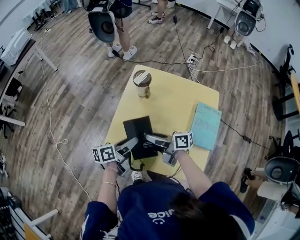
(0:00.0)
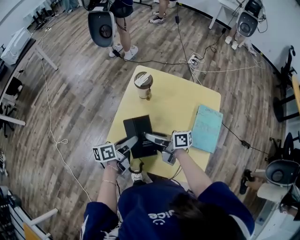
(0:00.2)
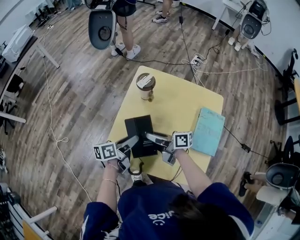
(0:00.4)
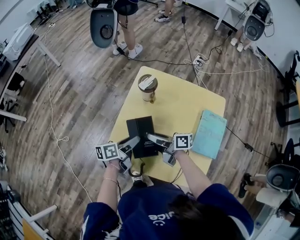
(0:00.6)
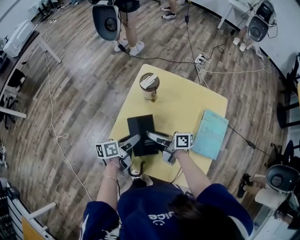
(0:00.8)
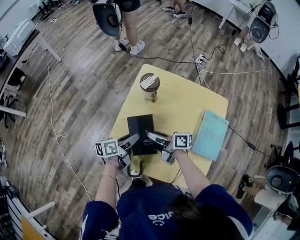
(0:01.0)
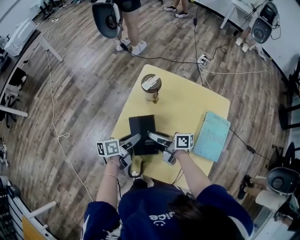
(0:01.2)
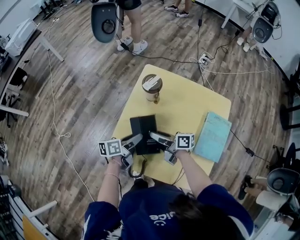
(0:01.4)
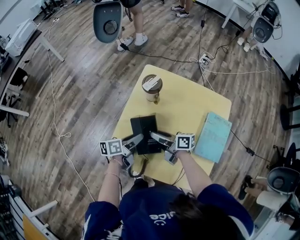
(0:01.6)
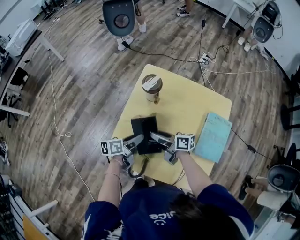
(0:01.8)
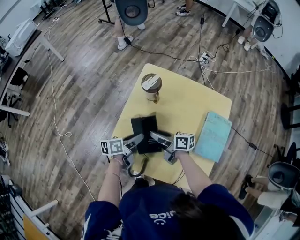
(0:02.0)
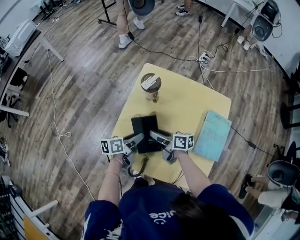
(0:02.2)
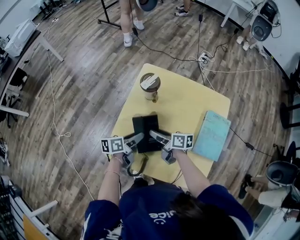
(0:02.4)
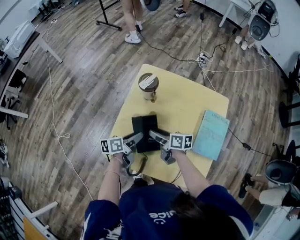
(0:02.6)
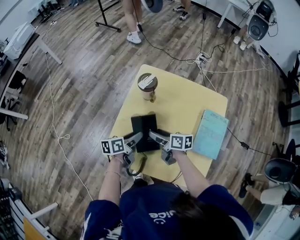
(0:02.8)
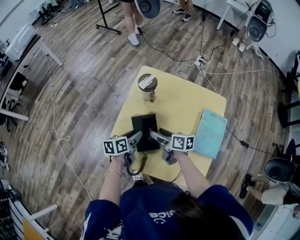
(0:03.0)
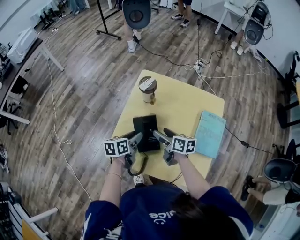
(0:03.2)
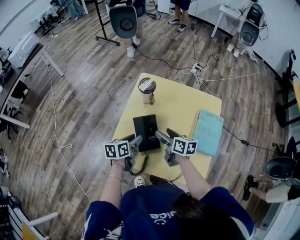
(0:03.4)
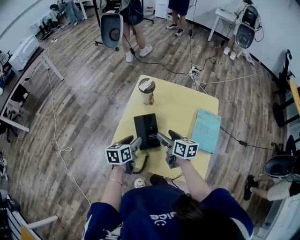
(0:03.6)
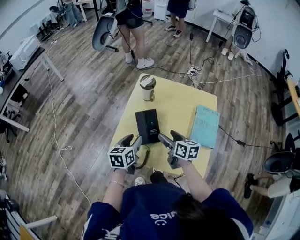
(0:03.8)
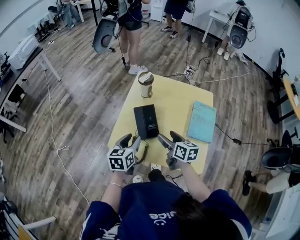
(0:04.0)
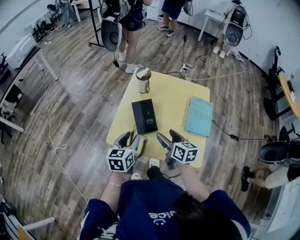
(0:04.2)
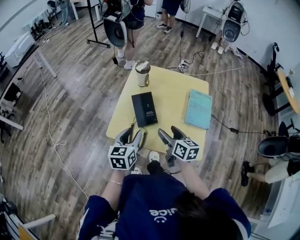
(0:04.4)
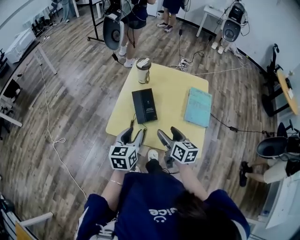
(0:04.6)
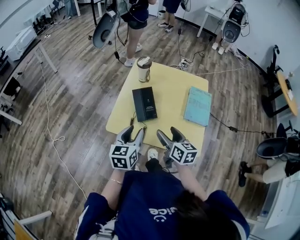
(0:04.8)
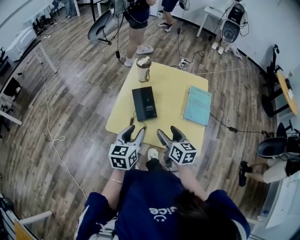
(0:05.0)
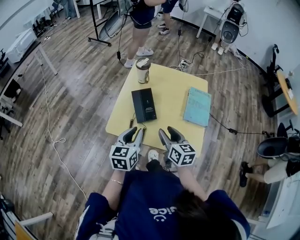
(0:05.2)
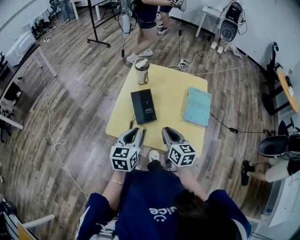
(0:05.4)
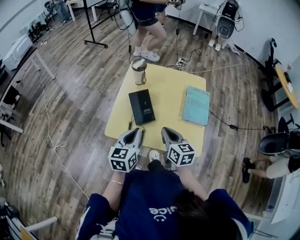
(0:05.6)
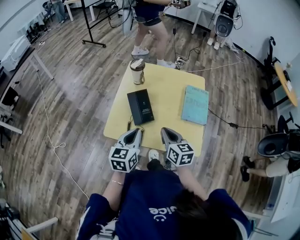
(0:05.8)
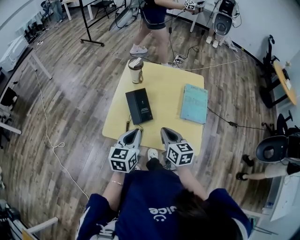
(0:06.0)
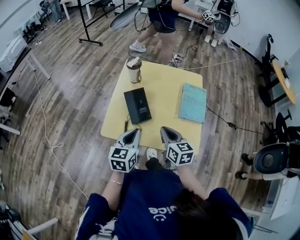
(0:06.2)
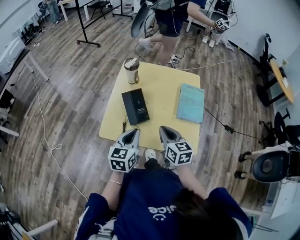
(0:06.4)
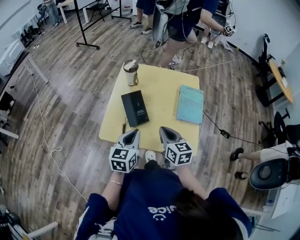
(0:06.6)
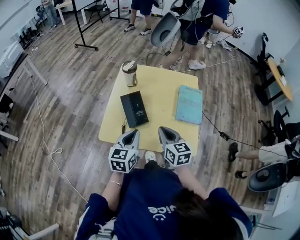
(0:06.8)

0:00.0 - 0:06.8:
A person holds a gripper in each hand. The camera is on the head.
0:00.0 - 0:01.4: Both grippers travel together forward and downward, roughly 10 cm.
0:01.4 - 0:02.8: The right gripper swivels roughly 20 degrees, and opens its fingers.
0:02.8 - 0:04.0: Both grippers move backward and upward, approximately 15 cm. The right gripper changes its angle by approximately 30 degrees; the left gripper changes its angle by some 40 degrees.
0:04.0 - 0:05.4: The two grippers go approximately 10 cm backward. The right gripper closes, while the left gripper closes its fingers.
0:05.4 - 0:06.8: The grippers move only a little.

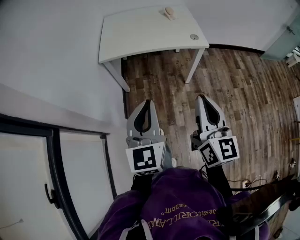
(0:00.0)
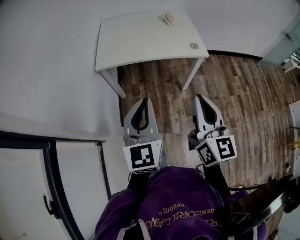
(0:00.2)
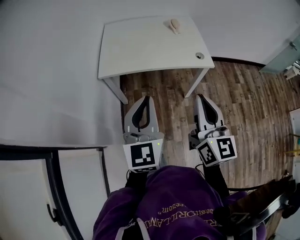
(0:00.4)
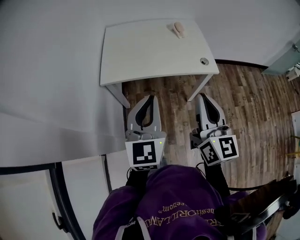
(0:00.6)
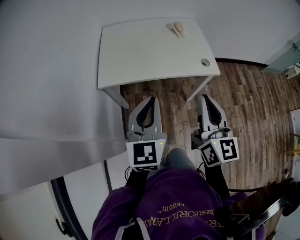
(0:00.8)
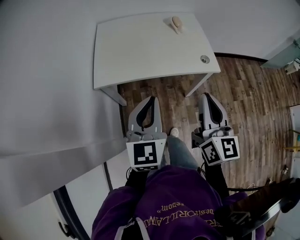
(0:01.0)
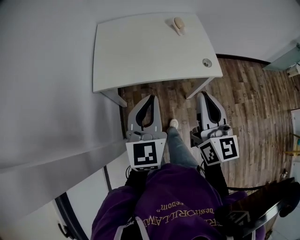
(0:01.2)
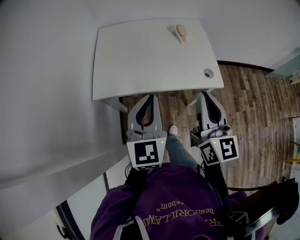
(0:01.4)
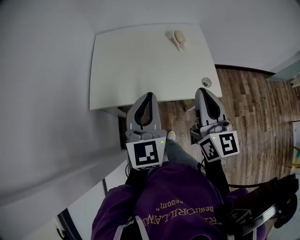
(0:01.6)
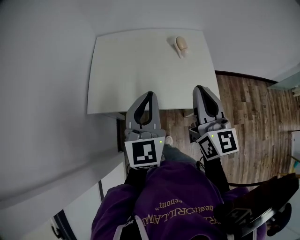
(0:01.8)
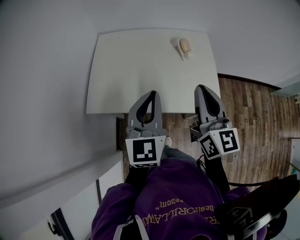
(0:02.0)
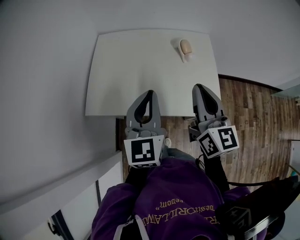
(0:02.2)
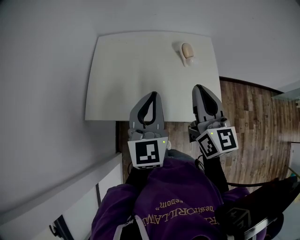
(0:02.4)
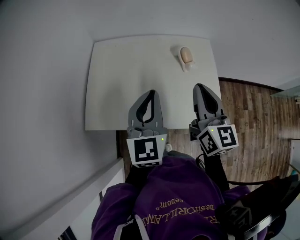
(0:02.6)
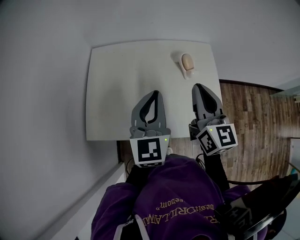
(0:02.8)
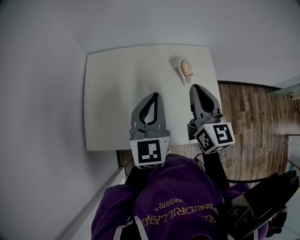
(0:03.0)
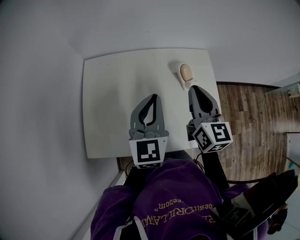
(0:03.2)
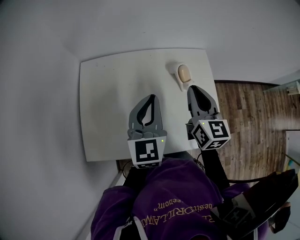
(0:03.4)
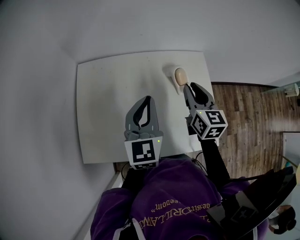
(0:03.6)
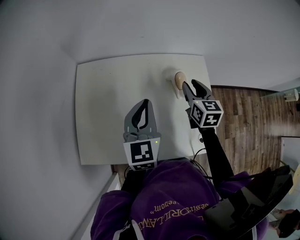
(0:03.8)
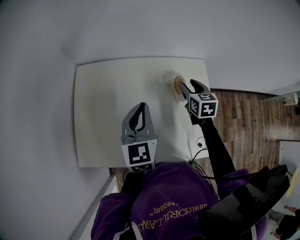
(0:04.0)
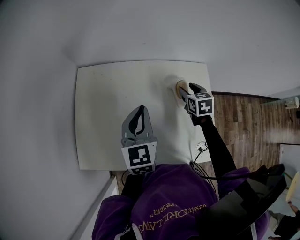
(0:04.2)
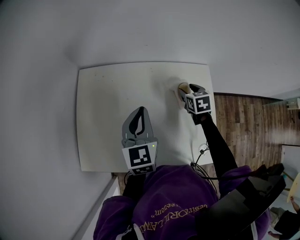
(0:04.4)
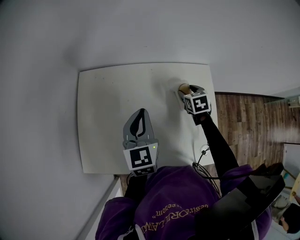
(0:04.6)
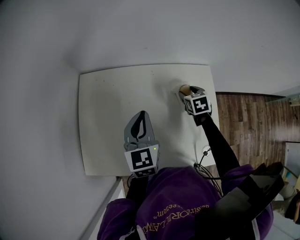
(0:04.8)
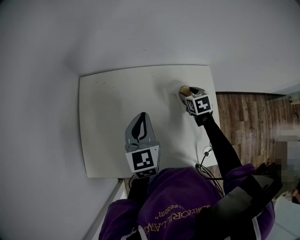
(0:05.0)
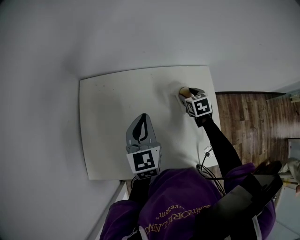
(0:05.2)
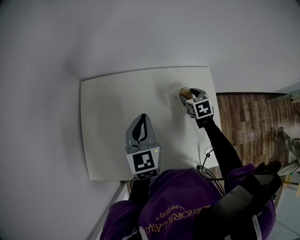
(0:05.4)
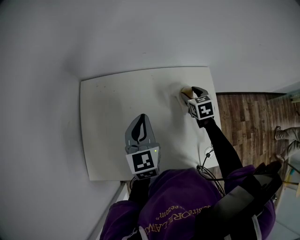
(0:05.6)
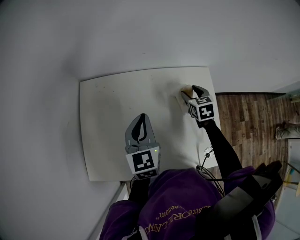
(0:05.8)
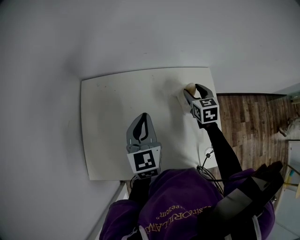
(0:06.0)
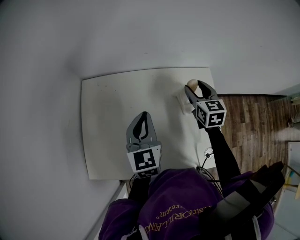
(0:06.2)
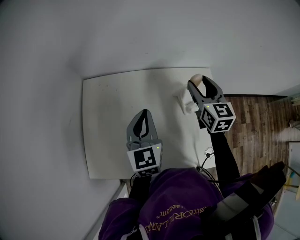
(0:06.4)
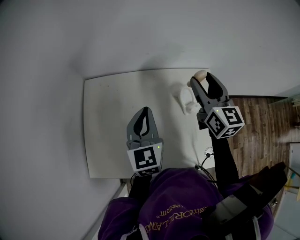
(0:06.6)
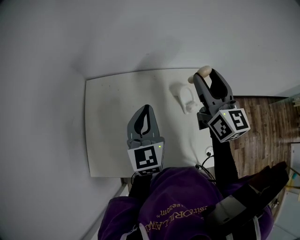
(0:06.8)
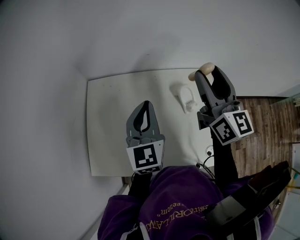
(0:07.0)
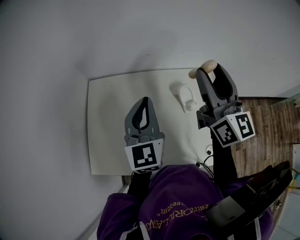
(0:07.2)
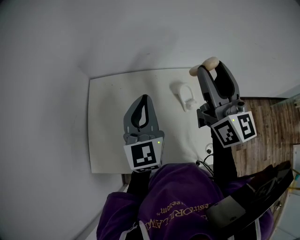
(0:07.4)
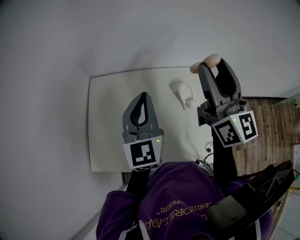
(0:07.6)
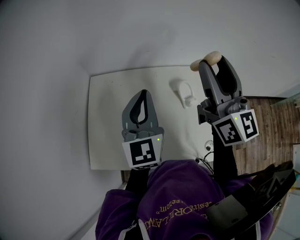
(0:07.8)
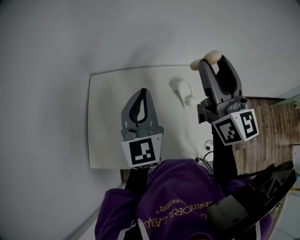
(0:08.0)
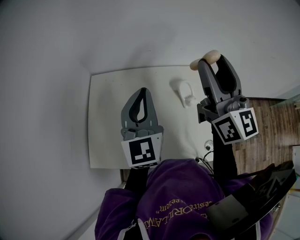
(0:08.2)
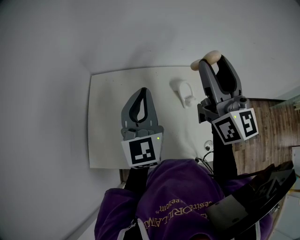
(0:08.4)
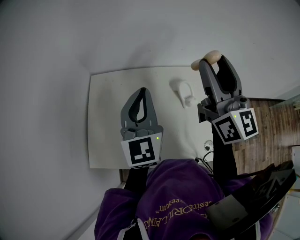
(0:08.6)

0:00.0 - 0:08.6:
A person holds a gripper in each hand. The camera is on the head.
0:00.0 - 0:01.4: Both grippers move forward, some 35 cm.
0:01.4 - 0:02.8: The two grippers go roughly 30 cm forward.
0:02.8 - 0:04.4: The right gripper travels downward and forward by approximately 35 cm, tips its fingers downward by some 50 degrees, and opens up, while the left gripper shifts approximately 15 cm forward and downward.
0:04.4 - 0:05.8: There are only small adjustments of the grippers.
0:05.8 - 0:07.2: The left gripper goes approximately 10 cm upward. The right gripper is displaced upward by some 35 cm, and tilts its fingers roughly 50 degrees upward.
0:07.2 - 0:08.6: The right gripper moves some 5 cm.

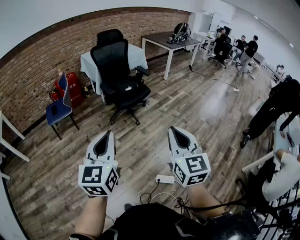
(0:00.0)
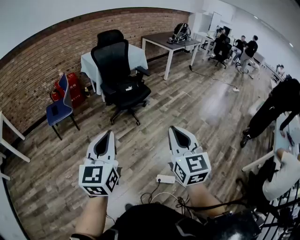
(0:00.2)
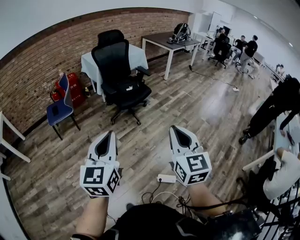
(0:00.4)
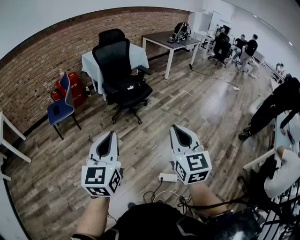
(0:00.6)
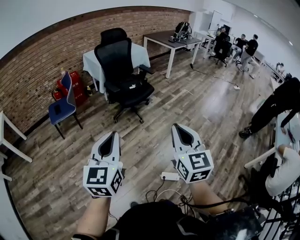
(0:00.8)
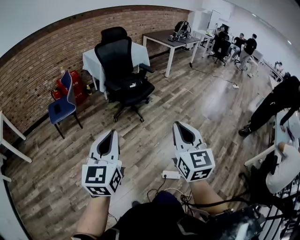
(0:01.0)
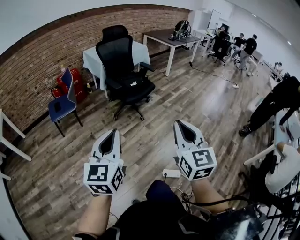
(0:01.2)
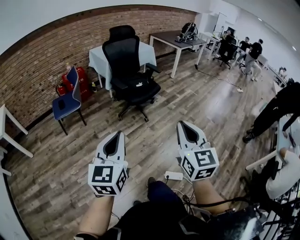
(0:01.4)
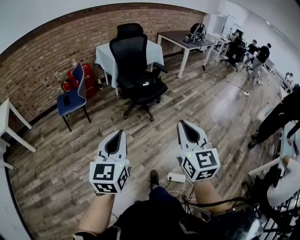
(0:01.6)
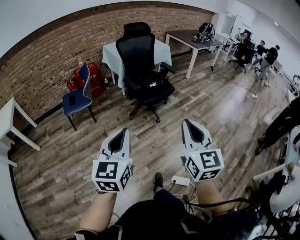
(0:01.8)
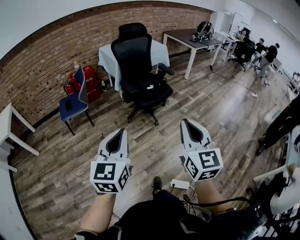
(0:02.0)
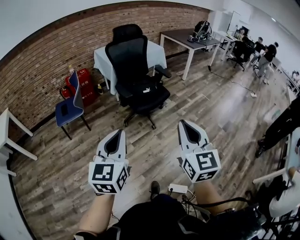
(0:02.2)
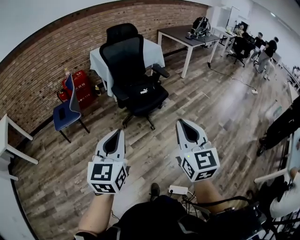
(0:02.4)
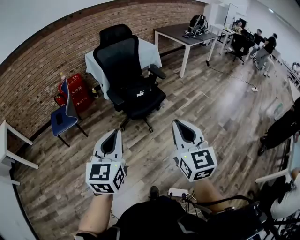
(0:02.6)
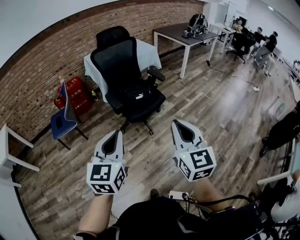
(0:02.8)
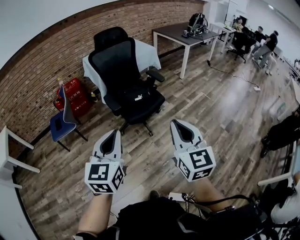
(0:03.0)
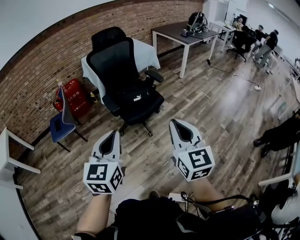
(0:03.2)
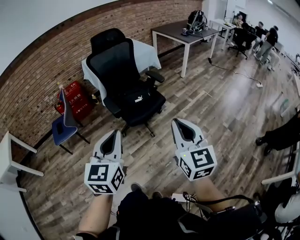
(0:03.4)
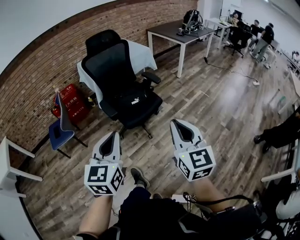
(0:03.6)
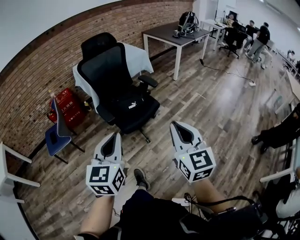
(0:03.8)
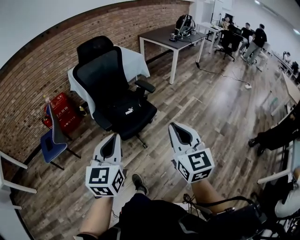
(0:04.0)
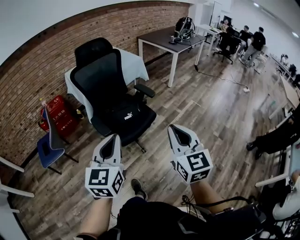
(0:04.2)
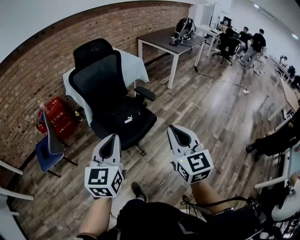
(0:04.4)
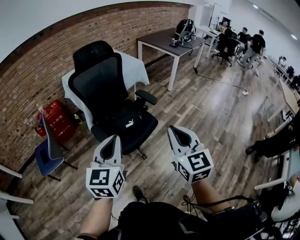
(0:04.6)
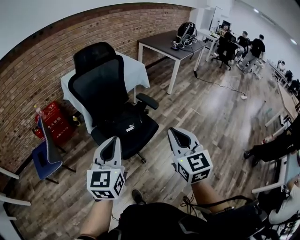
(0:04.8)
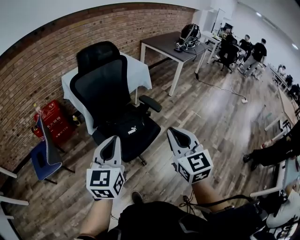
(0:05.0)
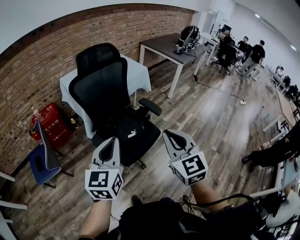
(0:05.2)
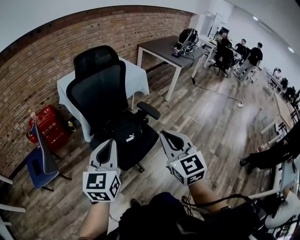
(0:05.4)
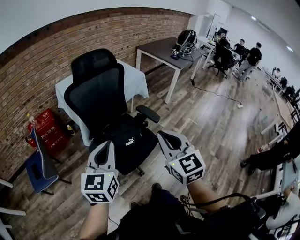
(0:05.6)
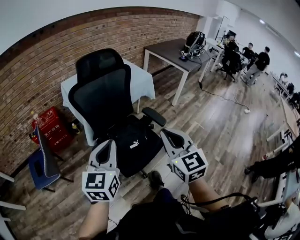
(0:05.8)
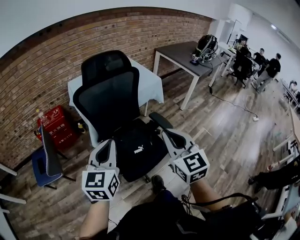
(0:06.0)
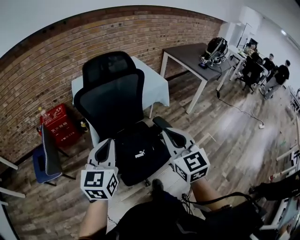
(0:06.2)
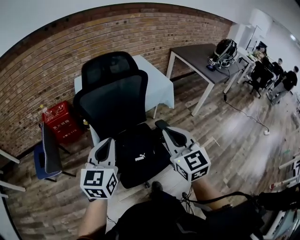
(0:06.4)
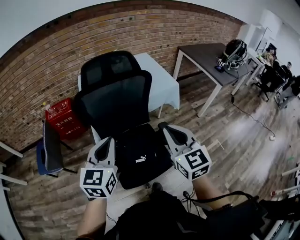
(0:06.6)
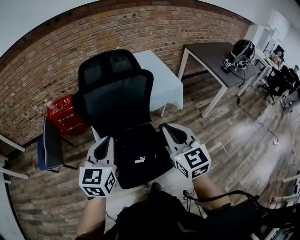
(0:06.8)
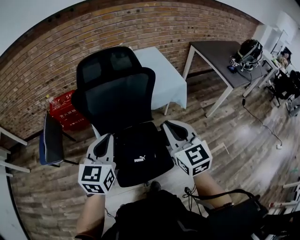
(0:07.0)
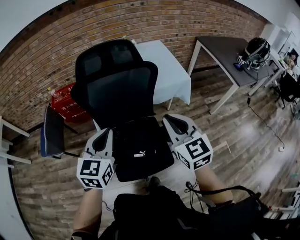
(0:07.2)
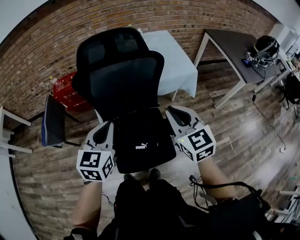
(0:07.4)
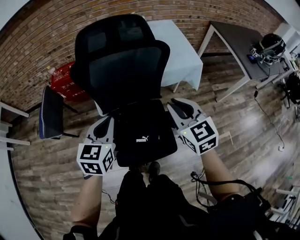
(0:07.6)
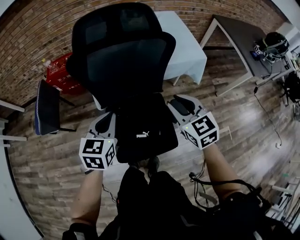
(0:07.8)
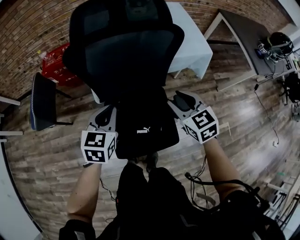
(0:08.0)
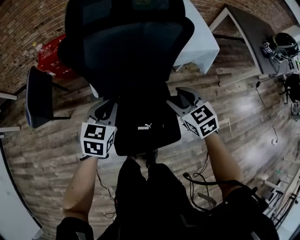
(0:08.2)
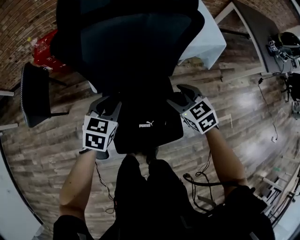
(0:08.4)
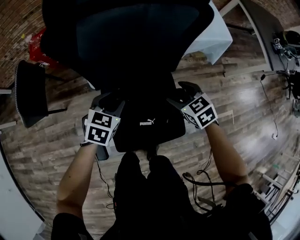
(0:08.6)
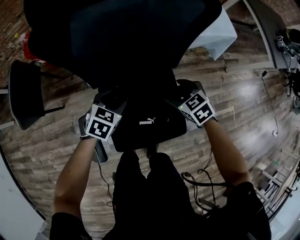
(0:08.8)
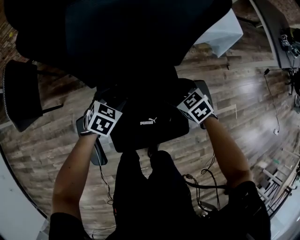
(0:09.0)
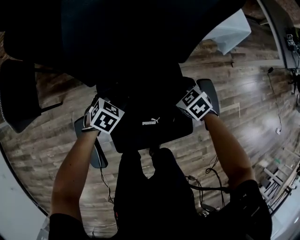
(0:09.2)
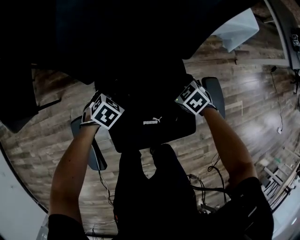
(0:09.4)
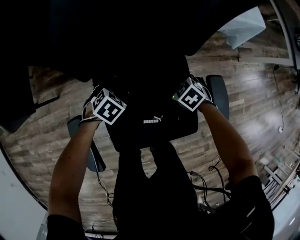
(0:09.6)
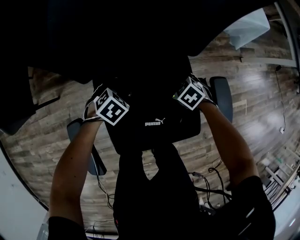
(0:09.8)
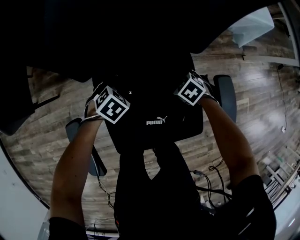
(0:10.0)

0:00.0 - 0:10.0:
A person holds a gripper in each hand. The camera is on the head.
0:00.0 - 0:01.4: Both grippers move to the left, some 10 cm.
0:01.4 - 0:02.8: Both grippers travel together forward, about 30 cm.
0:02.8 - 0:04.2: The grippers both shift forward by approximately 20 cm.
0:04.2 - 0:05.8: Both grippers move forward, about 25 cm.
0:05.8 - 0:07.2: The grippers both shift forward and to the right by roughly 25 cm. The left gripper rotates approximately 20 degrees. Meanwhile the right gripper turns by about 30 degrees.
0:07.2 - 0:08.6: The right gripper is displaced downward by roughly 30 cm, tips its fingers downward by some 40 degrees, and opens up, while the left gripper heads downward and forward, covering some 35 cm, points its fingers roughly 30 degrees further downward, and opens its fingers.
0:08.6 - 0:10.0: Both grippers move downward, approximately 25 cm. The left gripper turns by about 30 degrees, and opens up. Meanwhile the right gripper changes its angle by approximately 30 degrees.
